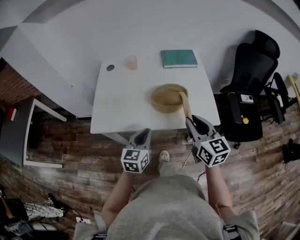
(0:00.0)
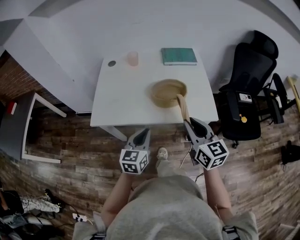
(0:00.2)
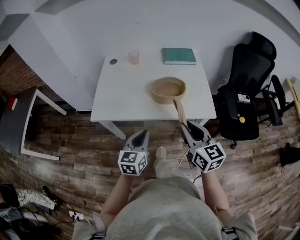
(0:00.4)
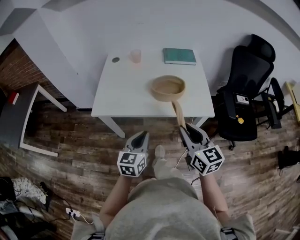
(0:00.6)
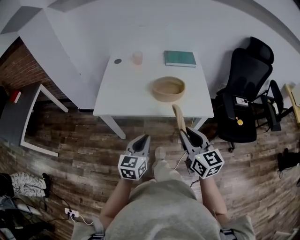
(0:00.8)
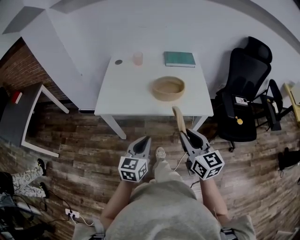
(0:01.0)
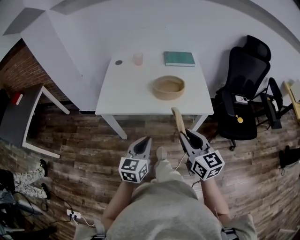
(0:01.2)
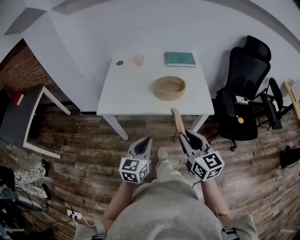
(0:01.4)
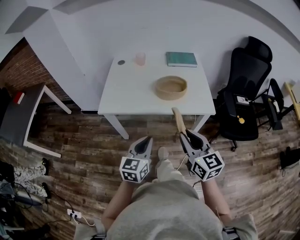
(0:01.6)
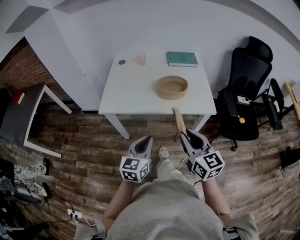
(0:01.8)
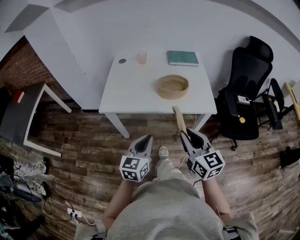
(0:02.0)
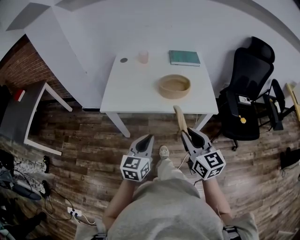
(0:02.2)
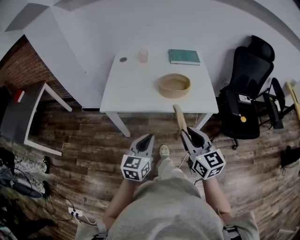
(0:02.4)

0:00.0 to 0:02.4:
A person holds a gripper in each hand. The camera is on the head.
0:00.0 to 0:01.2: The grippers both shift backward by about 20 cm.
0:01.2 to 0:02.4: The grippers move only a little.

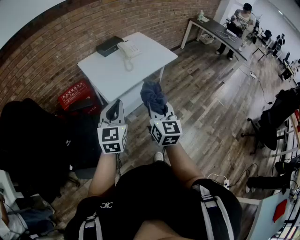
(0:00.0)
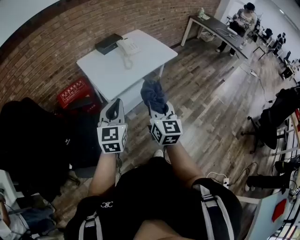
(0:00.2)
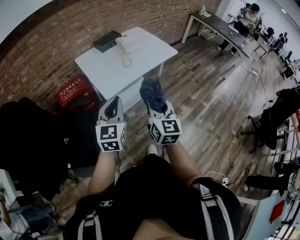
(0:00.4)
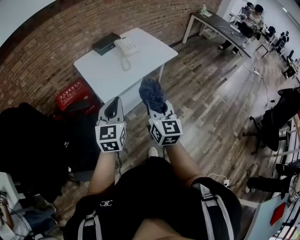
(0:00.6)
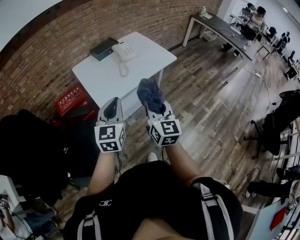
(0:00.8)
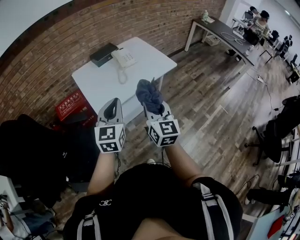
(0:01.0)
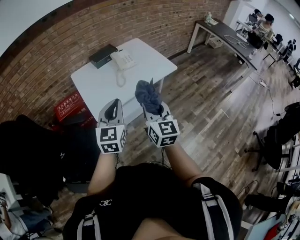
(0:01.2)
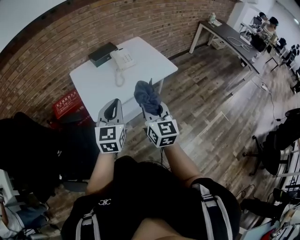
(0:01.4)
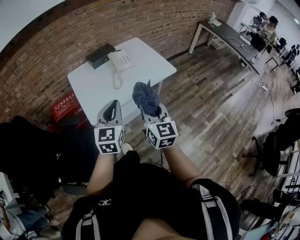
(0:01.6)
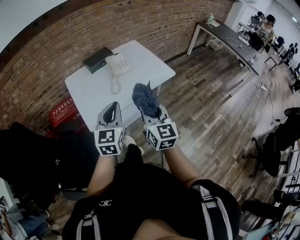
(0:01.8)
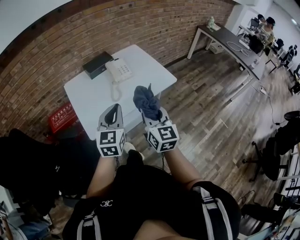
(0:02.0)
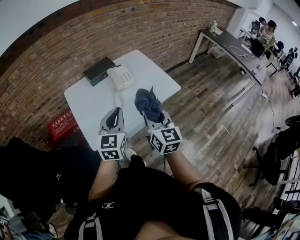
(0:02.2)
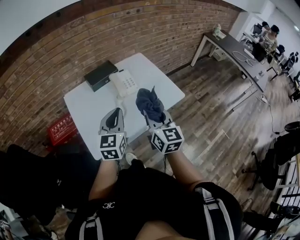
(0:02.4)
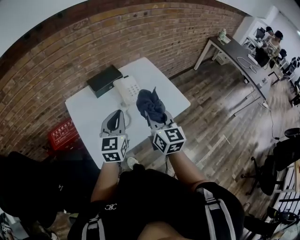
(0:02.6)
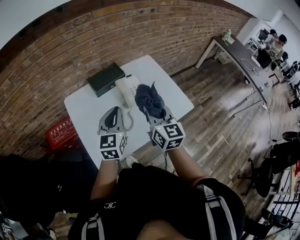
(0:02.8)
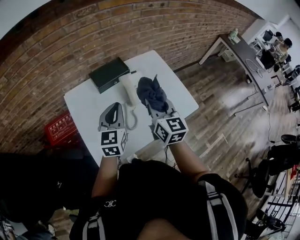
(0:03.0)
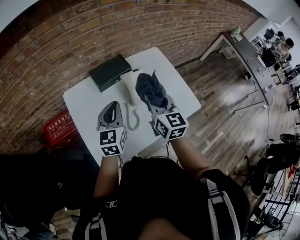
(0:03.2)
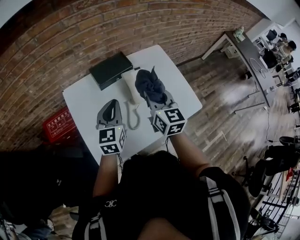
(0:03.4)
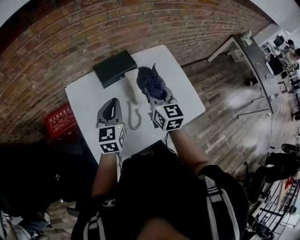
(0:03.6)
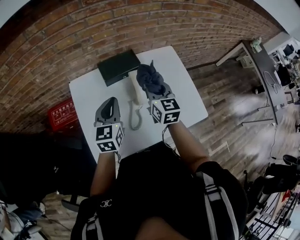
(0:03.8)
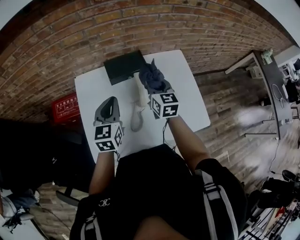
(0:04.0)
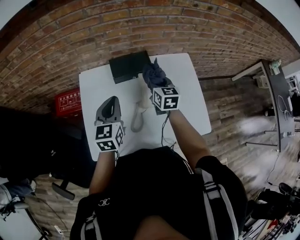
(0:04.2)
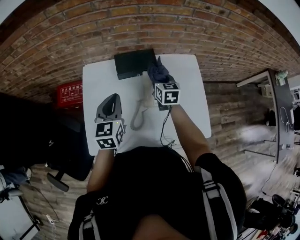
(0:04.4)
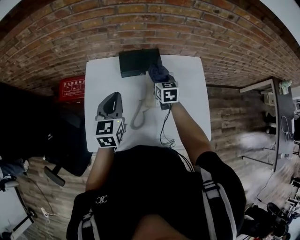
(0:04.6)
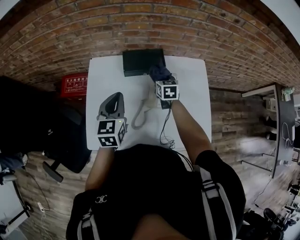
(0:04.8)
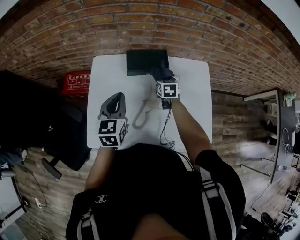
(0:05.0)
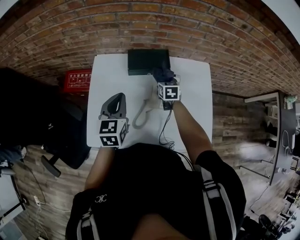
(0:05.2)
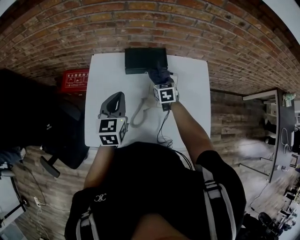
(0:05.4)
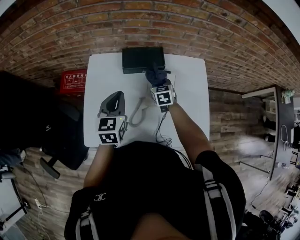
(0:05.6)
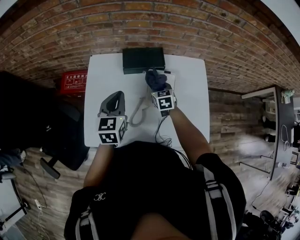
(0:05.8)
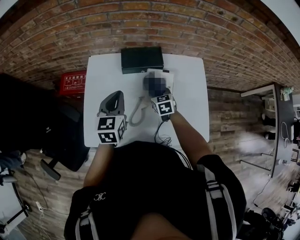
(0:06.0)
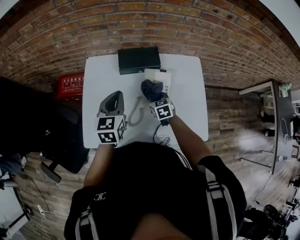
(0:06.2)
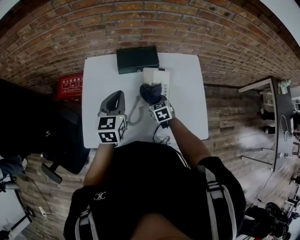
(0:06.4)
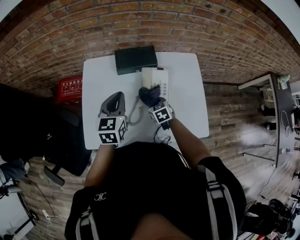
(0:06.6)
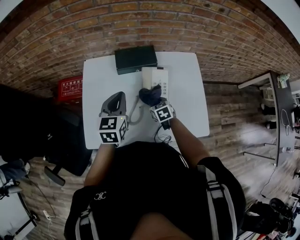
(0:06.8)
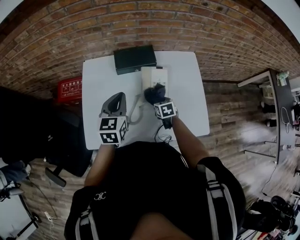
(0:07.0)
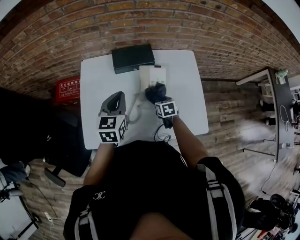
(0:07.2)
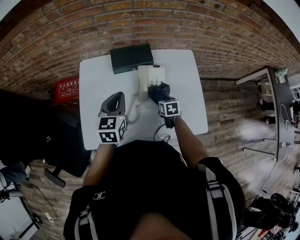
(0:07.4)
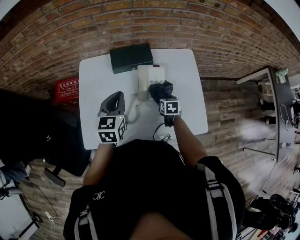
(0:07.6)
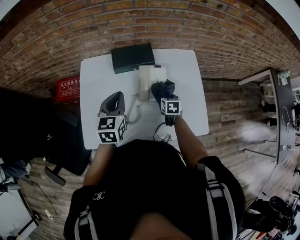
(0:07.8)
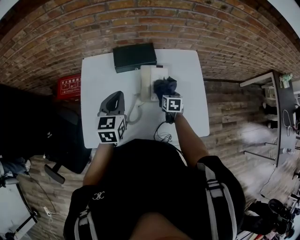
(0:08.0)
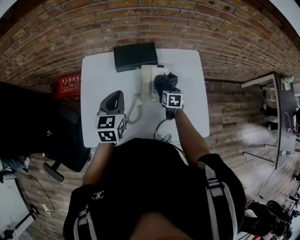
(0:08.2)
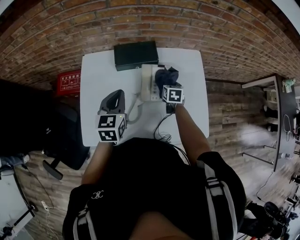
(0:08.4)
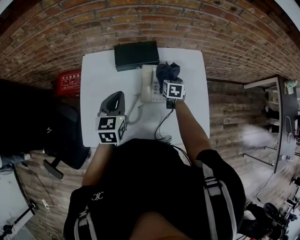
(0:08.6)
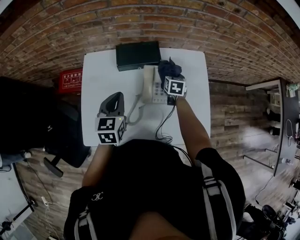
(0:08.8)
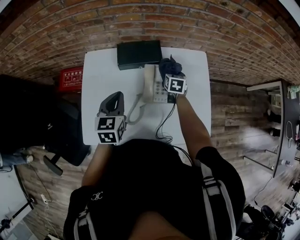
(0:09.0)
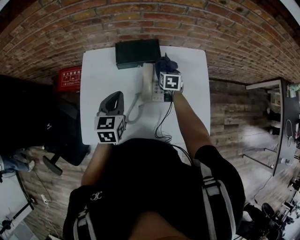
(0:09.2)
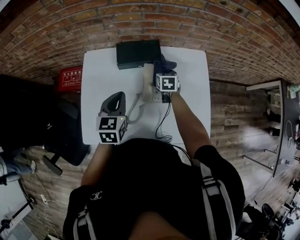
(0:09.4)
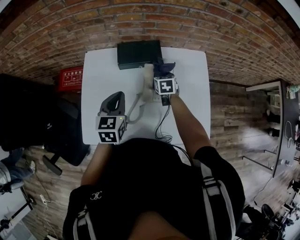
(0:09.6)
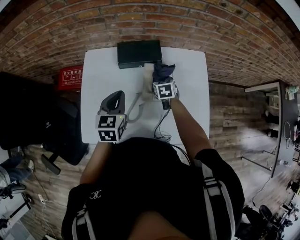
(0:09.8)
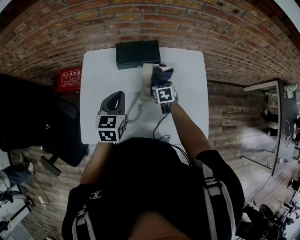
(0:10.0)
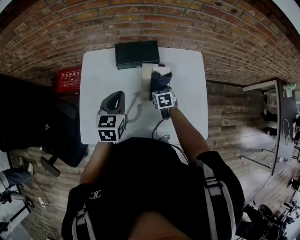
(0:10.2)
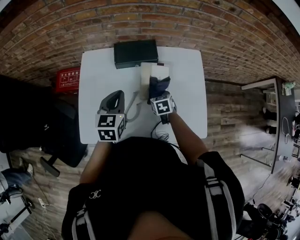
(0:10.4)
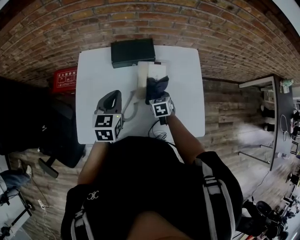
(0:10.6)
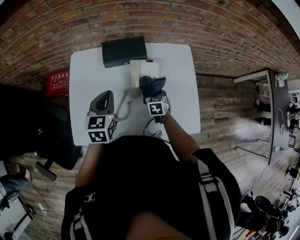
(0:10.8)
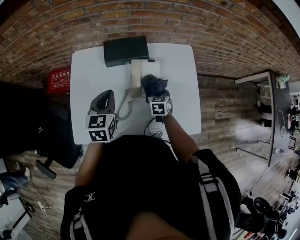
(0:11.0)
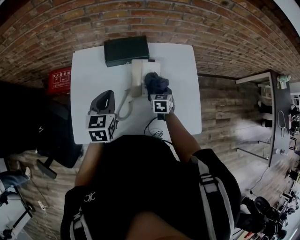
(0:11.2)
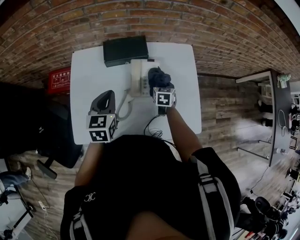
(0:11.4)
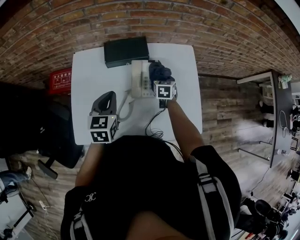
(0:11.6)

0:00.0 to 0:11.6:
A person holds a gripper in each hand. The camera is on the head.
0:00.0 to 0:01.4: Both grippers move forward and to the right, approximately 20 cm.
0:01.4 to 0:02.8: Both grippers travel together forward, about 35 cm.
0:02.8 to 0:04.4: The left gripper shifts some 10 cm forward, and turns by approximately 30 degrees. The right gripper moves forward and downward, approximately 35 cm, and swivels roughly 30 degrees.
0:04.4 to 0:05.8: The right gripper is displaced downward by some 10 cm.
0:05.8 to 0:07.2: The right gripper goes roughly 15 cm backward and downward.
0:07.2 to 0:08.8: The right gripper goes about 15 cm forward.
0:08.8 to 0:10.2: The right gripper moves backward and to the left, some 10 cm.
0:10.2 to 0:11.6: The right gripper shifts approximately 10 cm to the right.

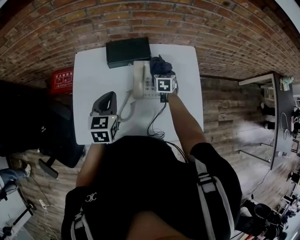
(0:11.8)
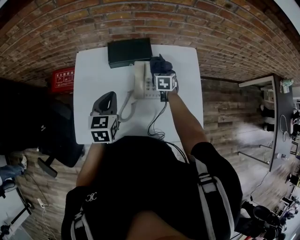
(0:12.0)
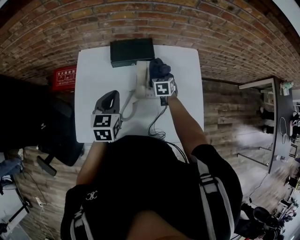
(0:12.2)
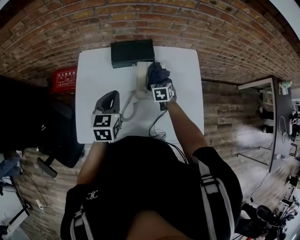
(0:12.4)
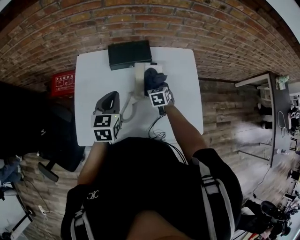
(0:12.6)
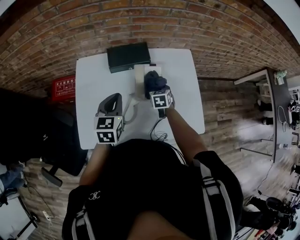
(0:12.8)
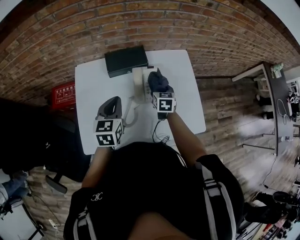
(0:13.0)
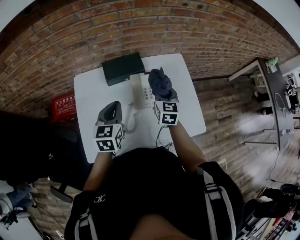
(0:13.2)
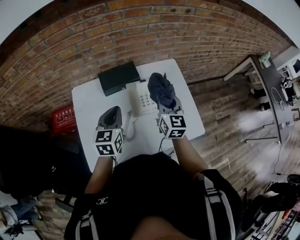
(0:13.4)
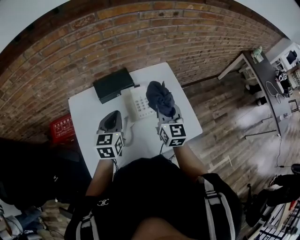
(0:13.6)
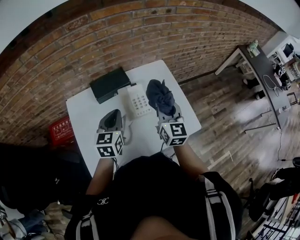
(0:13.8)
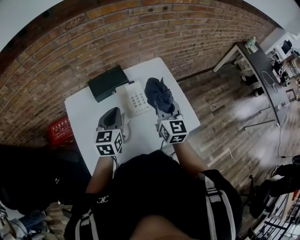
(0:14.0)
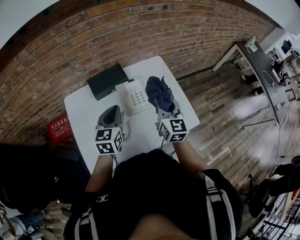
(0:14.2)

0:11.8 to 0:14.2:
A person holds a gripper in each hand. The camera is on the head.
0:11.8 to 0:13.0: The right gripper goes some 10 cm backward and upward.
0:13.0 to 0:14.2: The right gripper heads upward and backward, covering roughly 20 cm, and angles its fingers upward, by approximately 30 degrees. The left gripper is displaced to the right by about 5 cm.

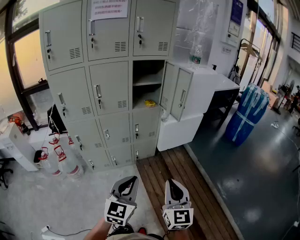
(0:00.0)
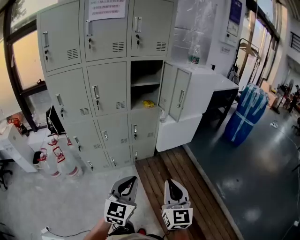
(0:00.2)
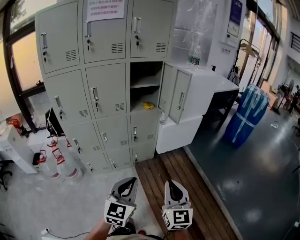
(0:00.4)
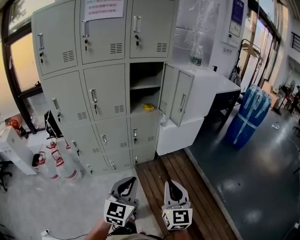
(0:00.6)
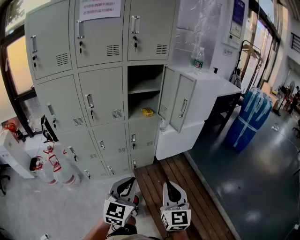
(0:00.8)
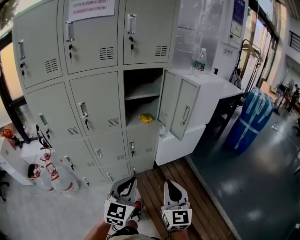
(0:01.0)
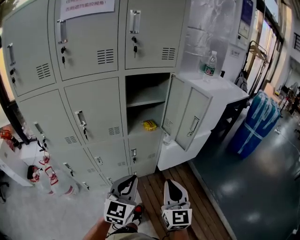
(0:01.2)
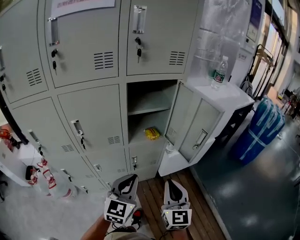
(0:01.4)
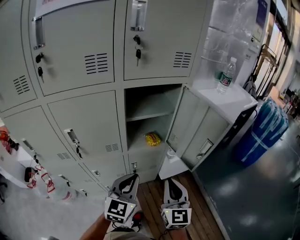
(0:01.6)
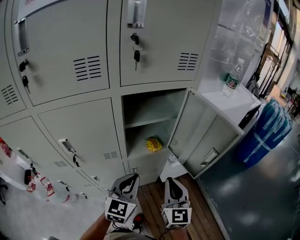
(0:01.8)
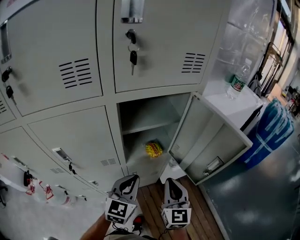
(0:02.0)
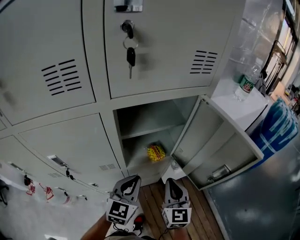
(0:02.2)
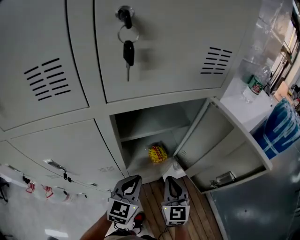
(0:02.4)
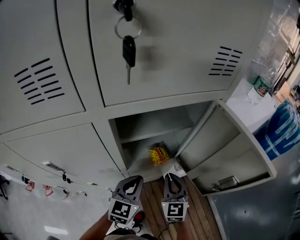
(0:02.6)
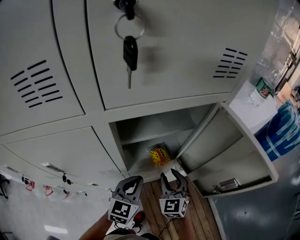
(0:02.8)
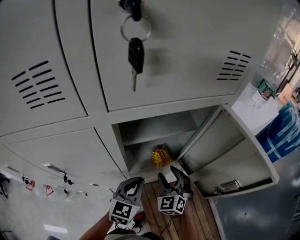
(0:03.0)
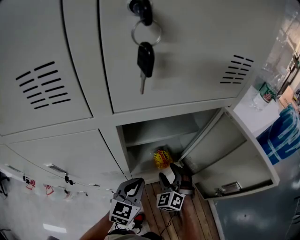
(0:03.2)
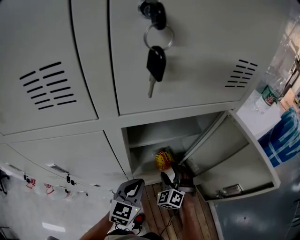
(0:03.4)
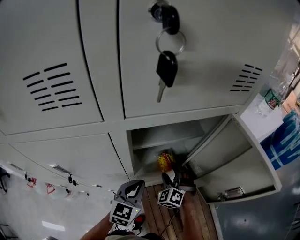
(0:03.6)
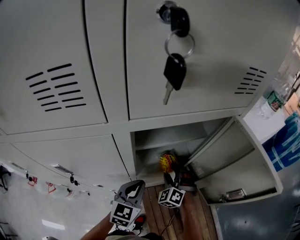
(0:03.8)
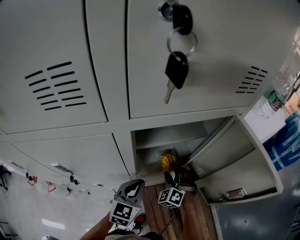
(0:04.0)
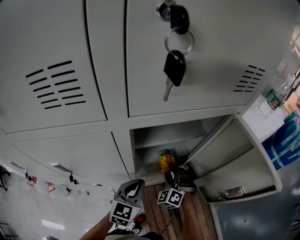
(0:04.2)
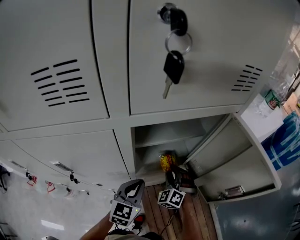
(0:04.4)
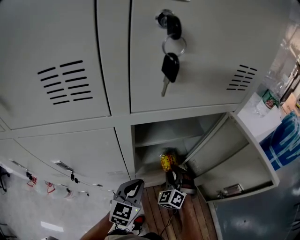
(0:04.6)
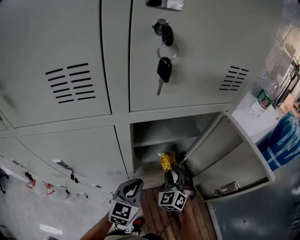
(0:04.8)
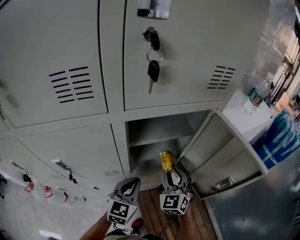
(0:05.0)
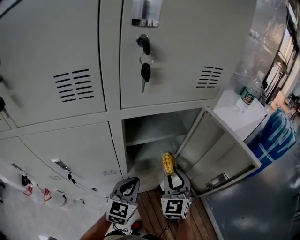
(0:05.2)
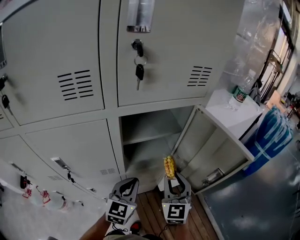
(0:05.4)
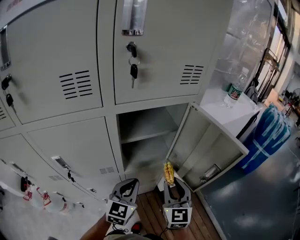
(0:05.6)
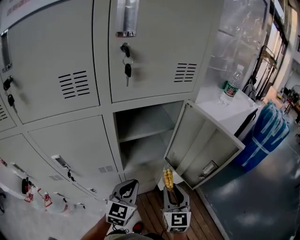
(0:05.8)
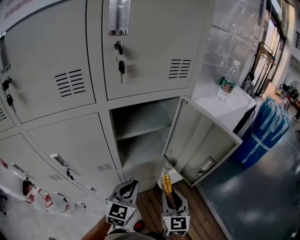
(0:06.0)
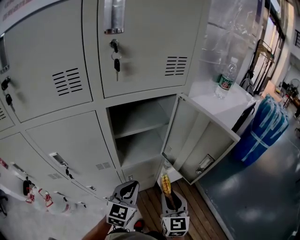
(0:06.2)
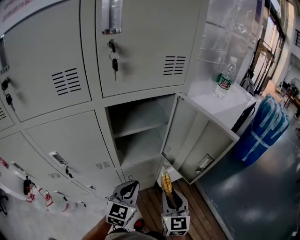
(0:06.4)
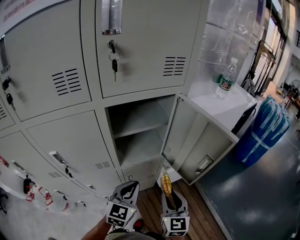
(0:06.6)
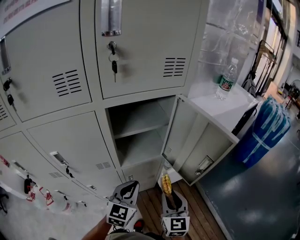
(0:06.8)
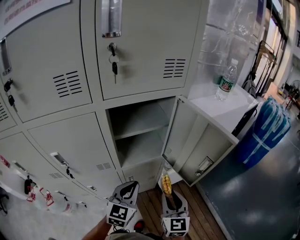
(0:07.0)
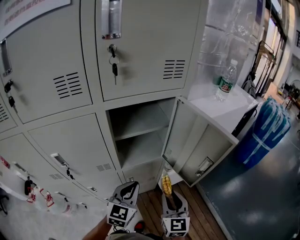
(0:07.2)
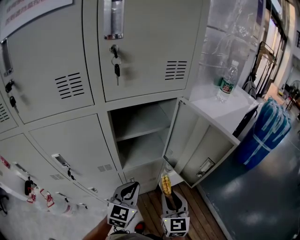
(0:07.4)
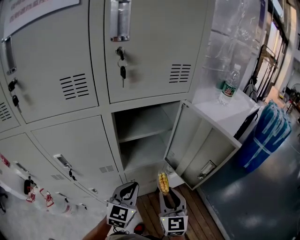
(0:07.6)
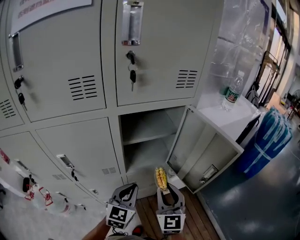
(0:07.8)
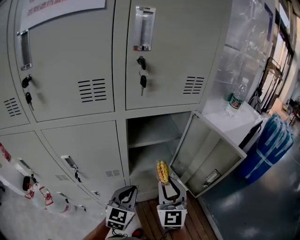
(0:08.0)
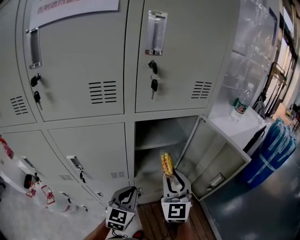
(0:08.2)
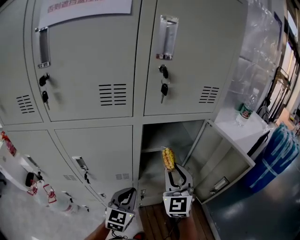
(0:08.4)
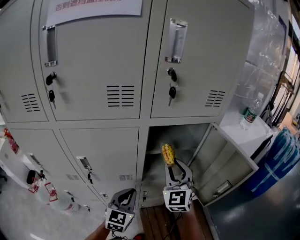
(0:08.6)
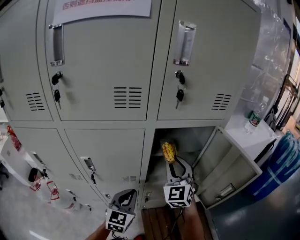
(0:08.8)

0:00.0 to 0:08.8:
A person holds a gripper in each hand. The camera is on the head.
0:00.0 to 0:01.4: The two grippers go approximately 35 cm forward.
0:01.4 to 0:03.0: Both grippers move forward and downward, roughly 30 cm. The right gripper changes its angle by roughly 40 degrees, and opens up.
0:03.0 to 0:04.4: The right gripper changes place by some 5 cm, and changes its angle by roughly 20 degrees.
0:04.4 to 0:05.8: The right gripper goes about 20 cm backward, upward and to the right, and rotates around the line of its fingers by about 50 degrees, clockwise from behind. Meanwhile the left gripper shifts approximately 10 cm upward and backward.
0:05.8 to 0:07.4: The grippers move only a little.
0:07.4 to 0:08.8: The left gripper goes about 10 cm to the left; the right gripper goes some 25 cm forward, to the left and upward, and turns by about 40 degrees.
